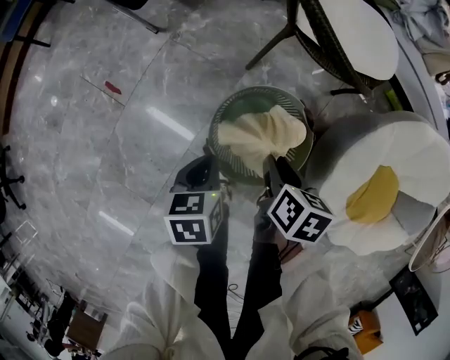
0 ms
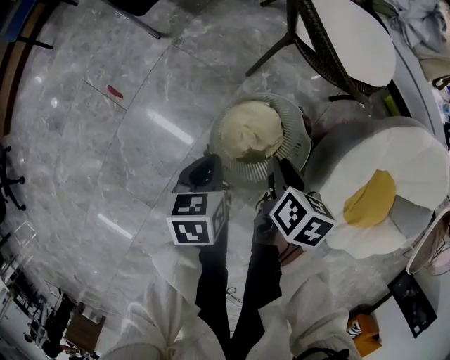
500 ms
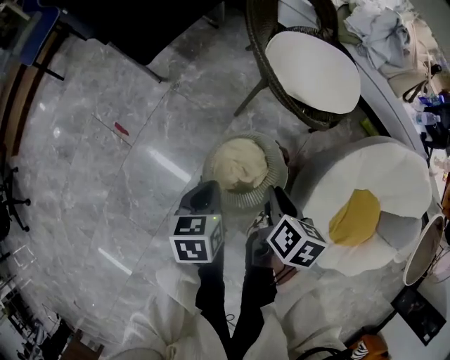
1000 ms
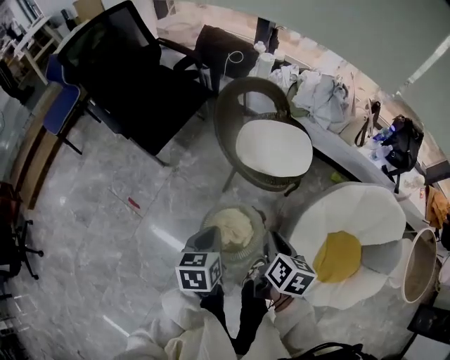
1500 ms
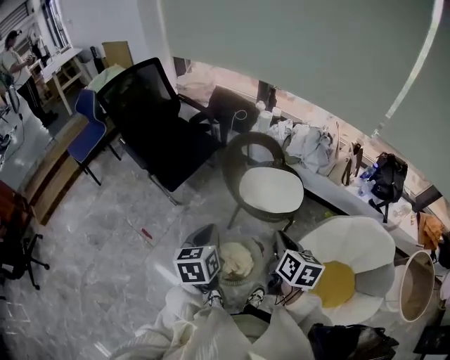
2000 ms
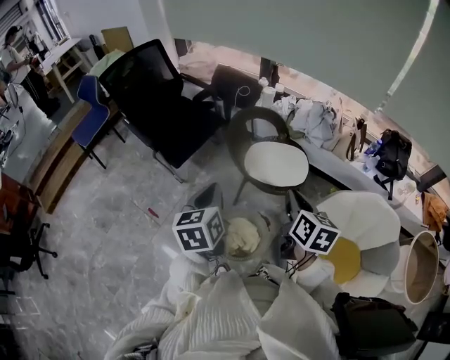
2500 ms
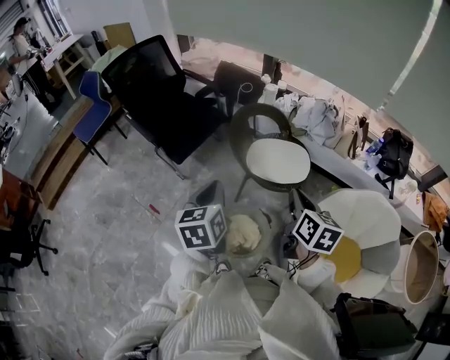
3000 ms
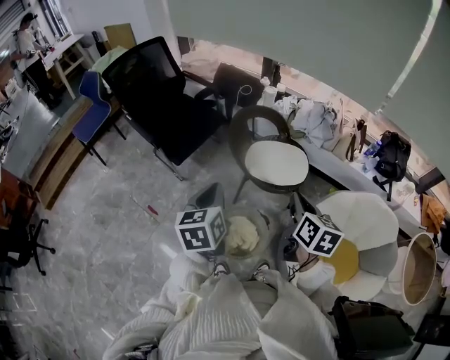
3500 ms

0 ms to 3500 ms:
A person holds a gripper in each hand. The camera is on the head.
0 ms to 2000 ms: The two grippers go some 40 cm upward. The right gripper turns by some 30 degrees, while the left gripper rotates roughly 30 degrees.
2000 ms to 3500 ms: The right gripper changes place by about 5 cm, while the left gripper is displaced upward by approximately 5 cm.

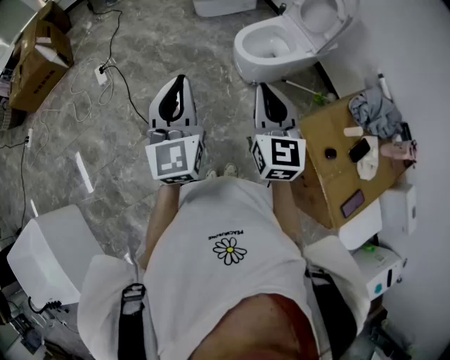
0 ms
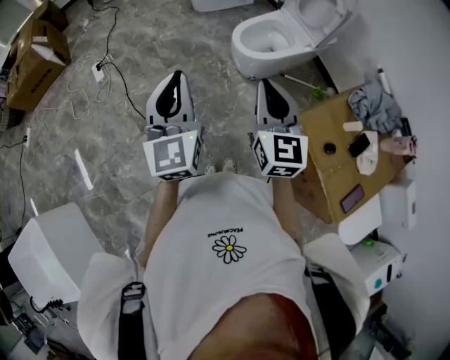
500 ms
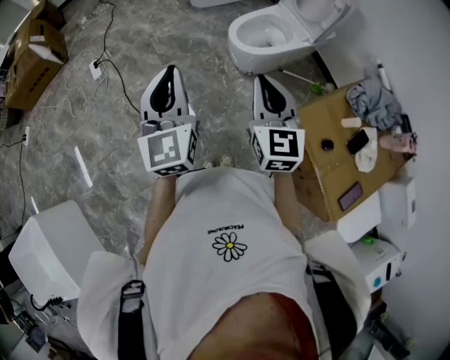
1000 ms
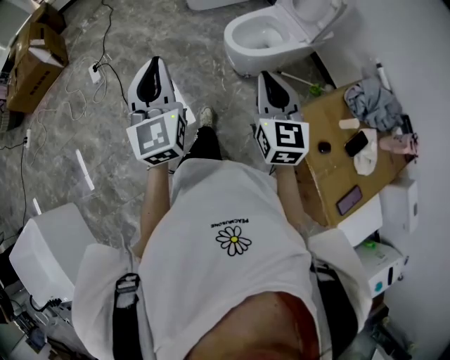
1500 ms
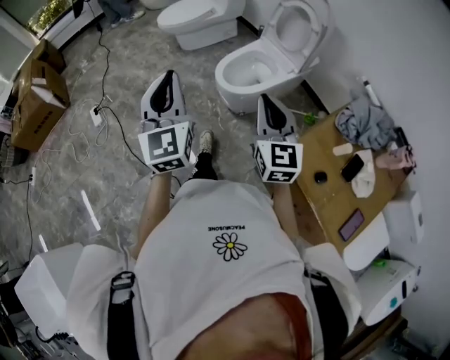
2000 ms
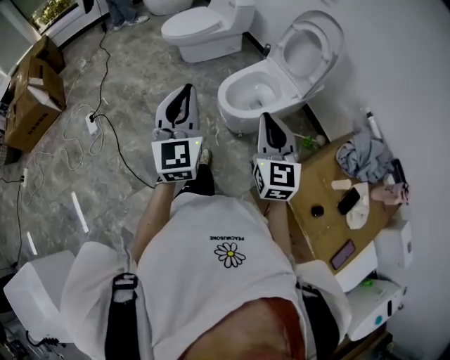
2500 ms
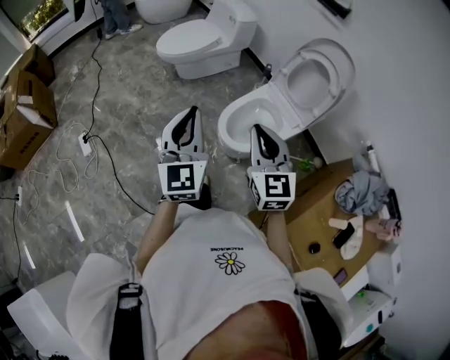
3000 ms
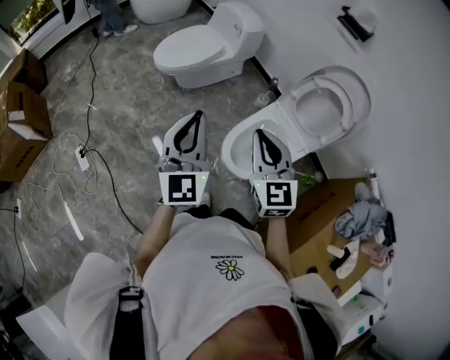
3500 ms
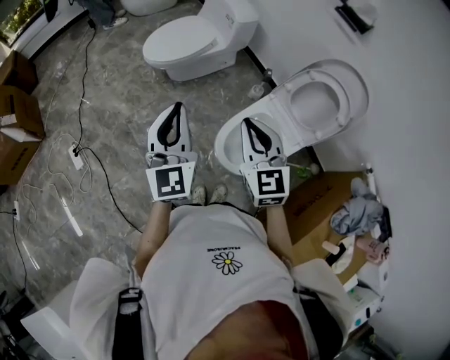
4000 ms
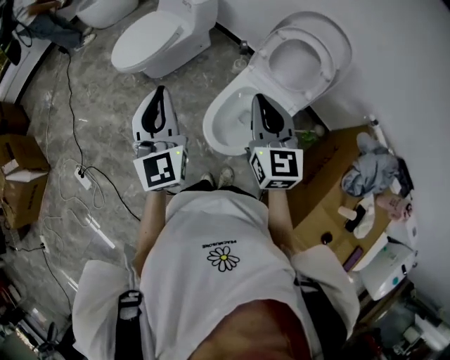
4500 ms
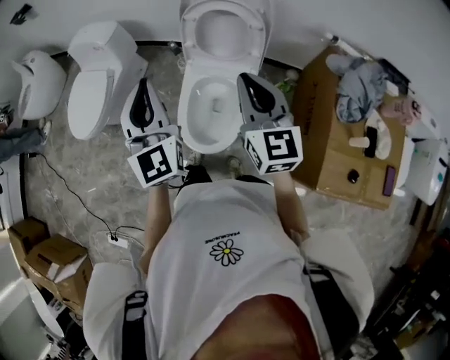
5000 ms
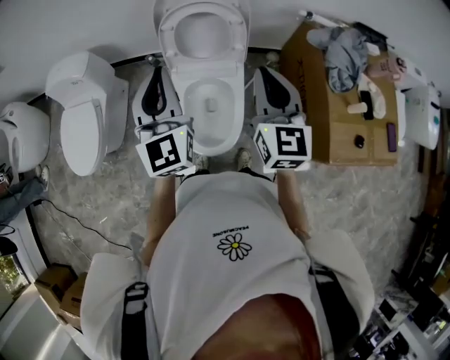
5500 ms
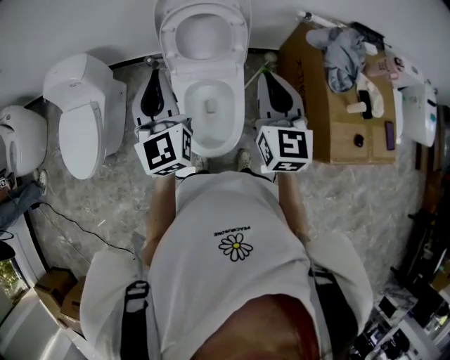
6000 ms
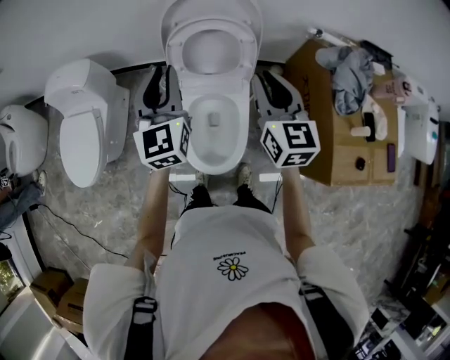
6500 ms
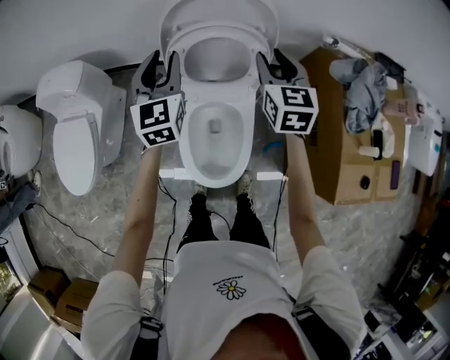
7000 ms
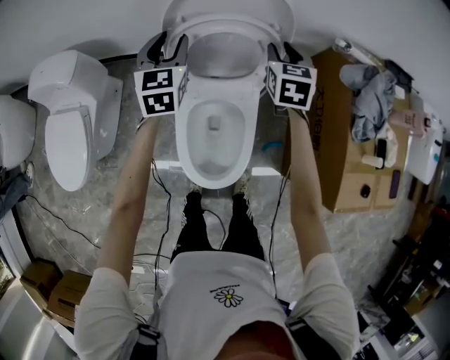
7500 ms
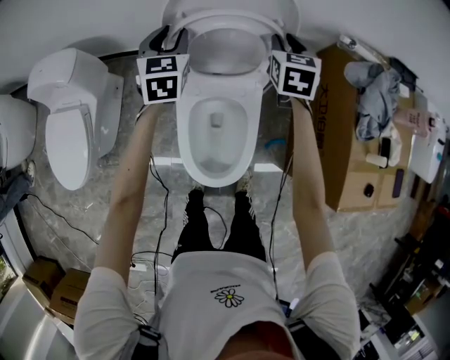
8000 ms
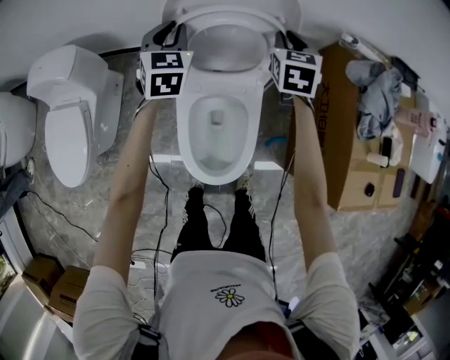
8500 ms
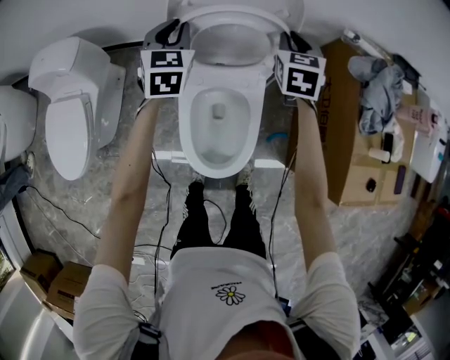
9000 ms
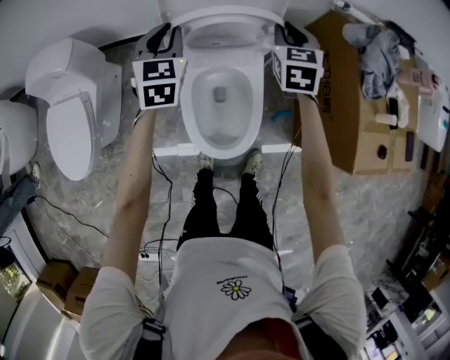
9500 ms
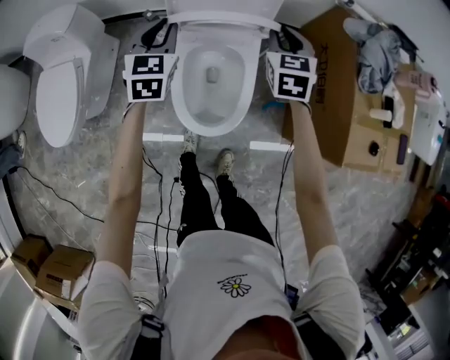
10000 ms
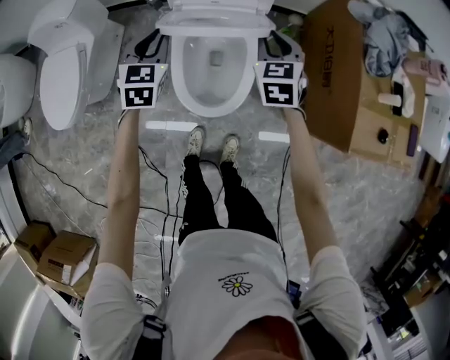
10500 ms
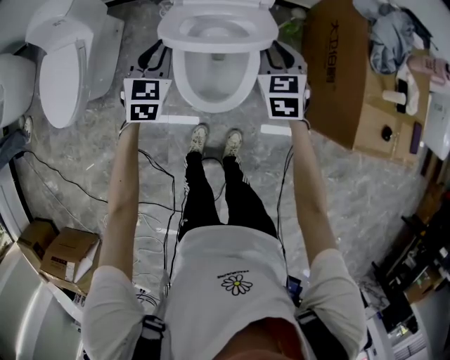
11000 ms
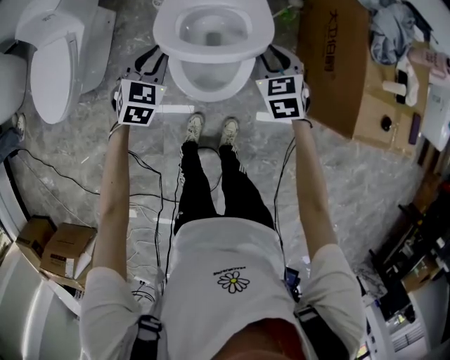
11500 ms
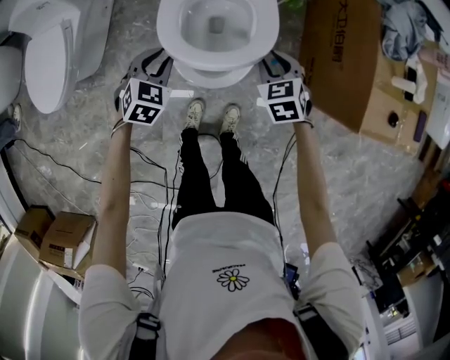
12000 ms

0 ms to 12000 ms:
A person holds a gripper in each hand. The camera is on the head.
0 ms to 2000 ms: The left gripper travels forward and to the right by roughly 15 cm. The right gripper moves to the right and forward, roughly 15 cm.
2000 ms to 4000 ms: The pair of grippers is taken forward, approximately 50 cm.
4000 ms to 6000 ms: The right gripper changes place by roughly 30 cm, and changes its angle by roughly 70 degrees. The left gripper shifts by roughly 35 cm, and rotates some 50 degrees.
6000 ms to 8000 ms: Both grippers travel together forward and downward, some 35 cm. The left gripper rotates some 30 degrees, and opens, while the right gripper rotates roughly 30 degrees, and opens its fingers.
8000 ms to 10000 ms: The grippers both shift backward by about 20 cm.
10000 ms to 12000 ms: Both grippers travel together backward and downward, about 25 cm. The left gripper rotates roughly 30 degrees, while the right gripper changes its angle by roughly 30 degrees.

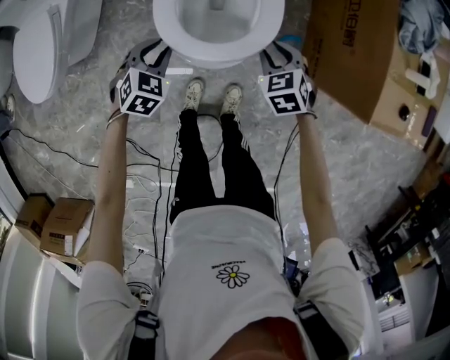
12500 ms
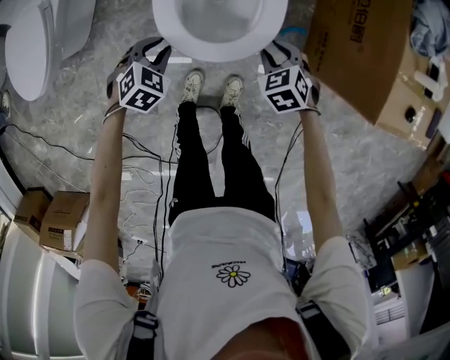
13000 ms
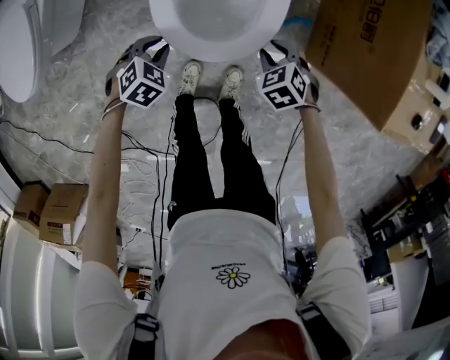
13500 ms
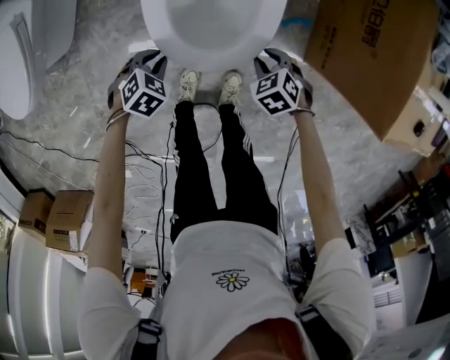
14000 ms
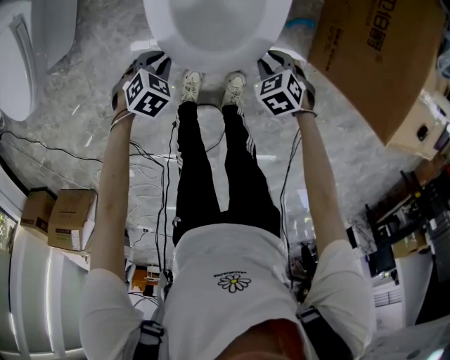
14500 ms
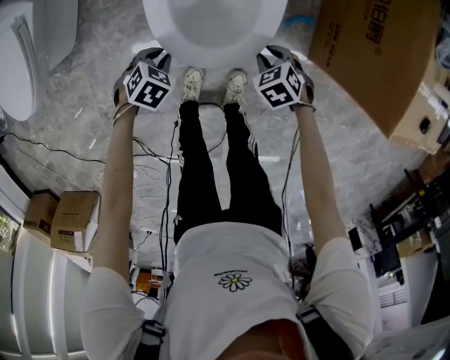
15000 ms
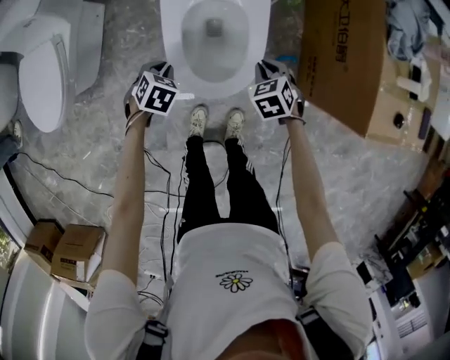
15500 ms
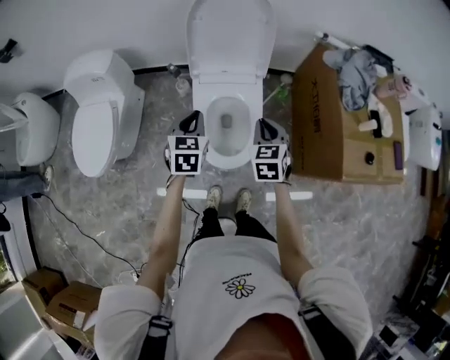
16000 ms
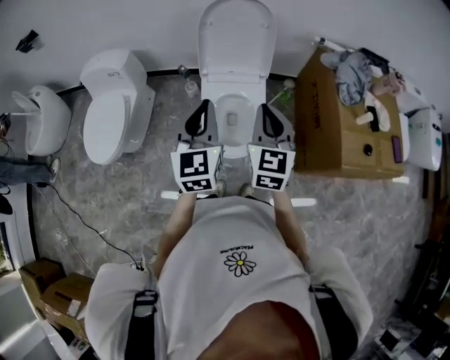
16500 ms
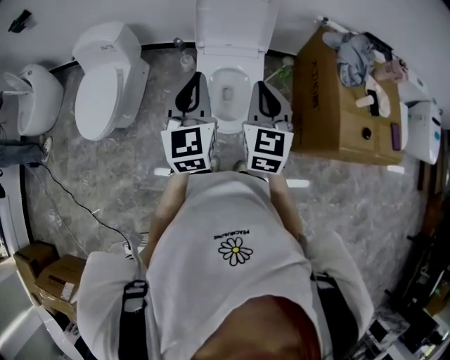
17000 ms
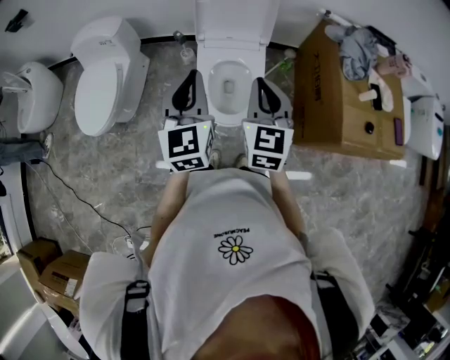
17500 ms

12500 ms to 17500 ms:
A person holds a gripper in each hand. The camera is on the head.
12500 ms to 15000 ms: Both grippers move downward, approximately 15 cm. The left gripper changes its angle by approximately 30 degrees. The right gripper rotates some 20 degrees.
15000 ms to 17500 ms: Both grippers travel together upward, approximately 60 cm. The right gripper tilts its fingers approximately 60 degrees upward. Meanwhile the left gripper tilts its fingers some 70 degrees upward.

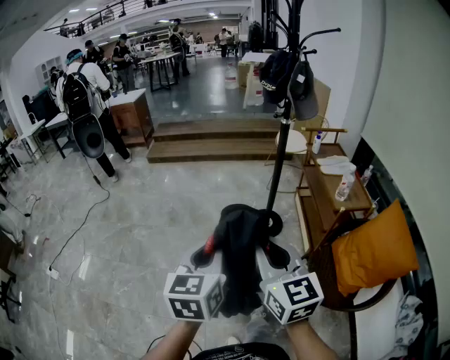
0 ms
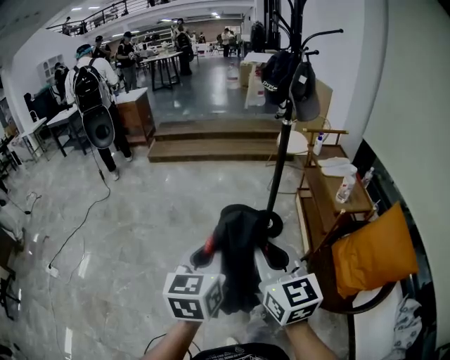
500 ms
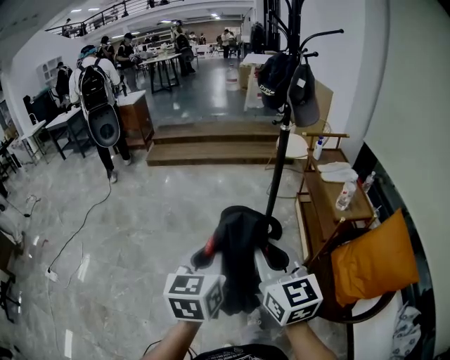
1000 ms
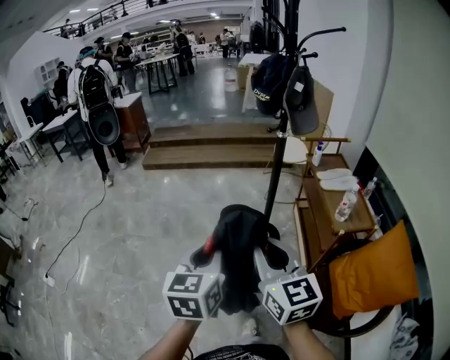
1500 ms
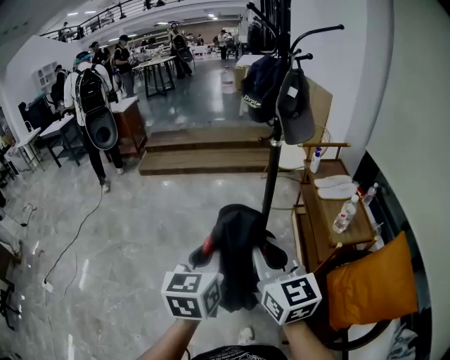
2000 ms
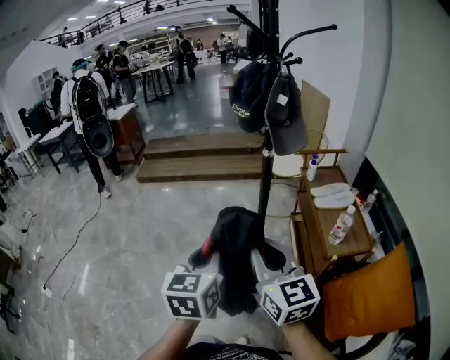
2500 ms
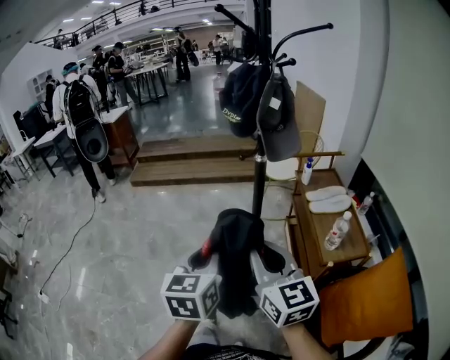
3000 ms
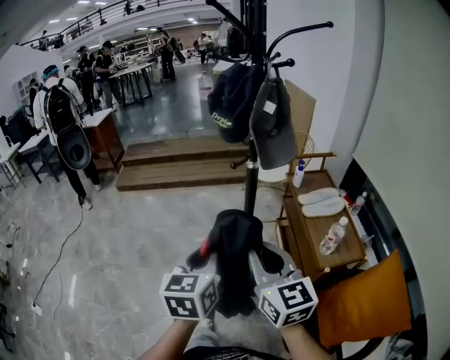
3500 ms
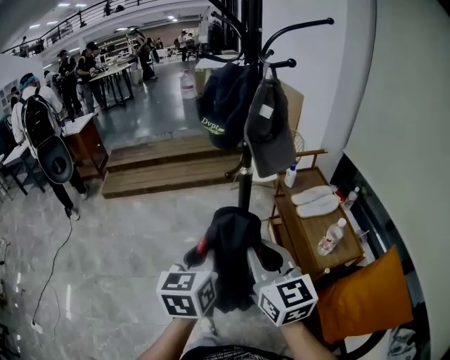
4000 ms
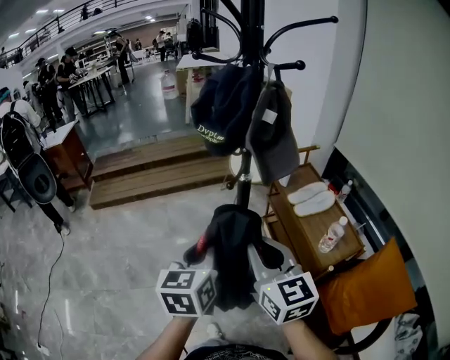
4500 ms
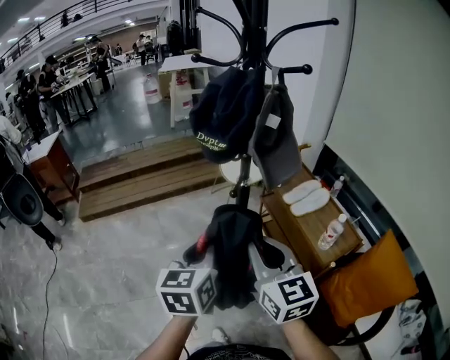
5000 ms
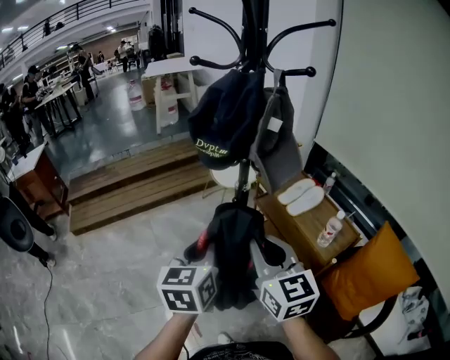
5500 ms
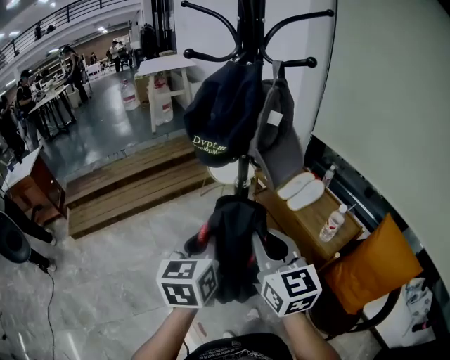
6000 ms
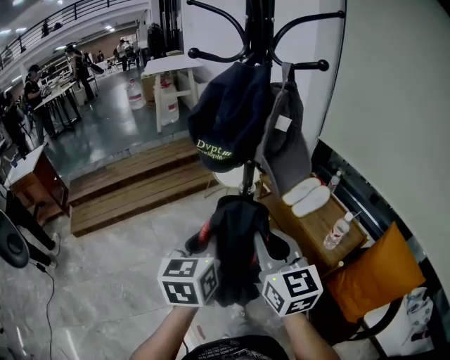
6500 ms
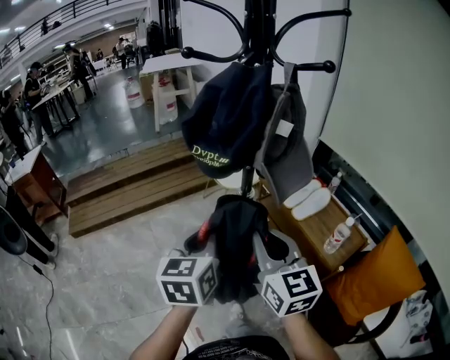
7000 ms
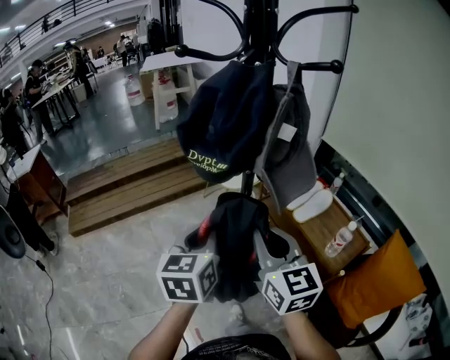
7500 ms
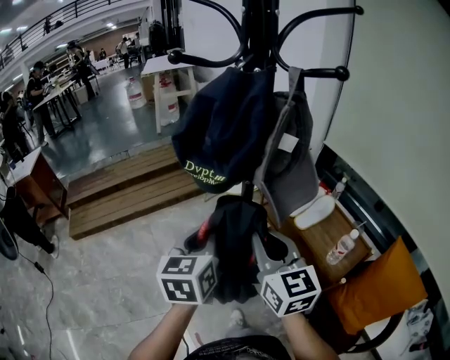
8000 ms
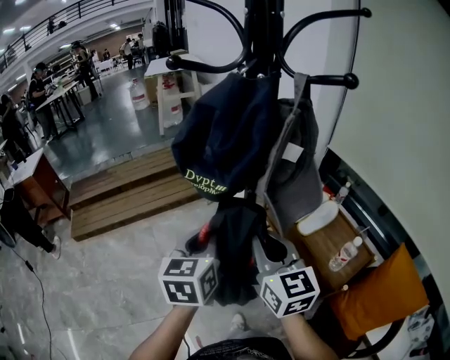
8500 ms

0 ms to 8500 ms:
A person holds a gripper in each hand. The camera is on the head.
0 ms to 2000 ms: The two grippers go some 20 cm forward and to the right.
2000 ms to 4000 ms: The left gripper goes approximately 20 cm forward. Meanwhile the right gripper travels forward and to the right by about 20 cm.
4000 ms to 6500 ms: Both grippers move forward, about 15 cm. The right gripper swivels roughly 20 degrees.
6500 ms to 8500 ms: Both grippers move forward, about 10 cm.
